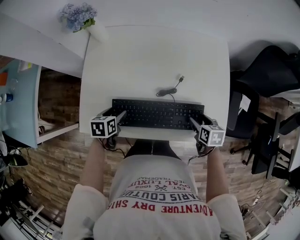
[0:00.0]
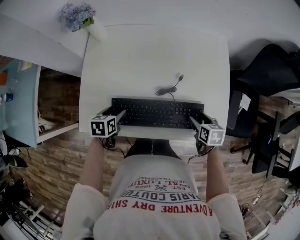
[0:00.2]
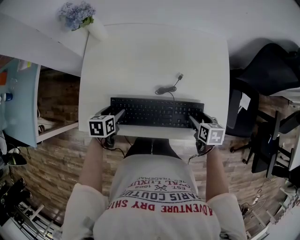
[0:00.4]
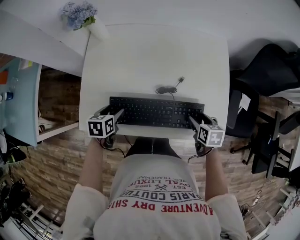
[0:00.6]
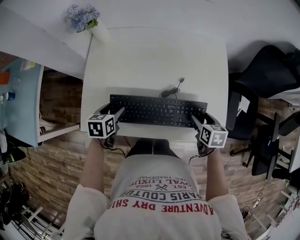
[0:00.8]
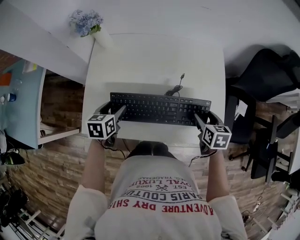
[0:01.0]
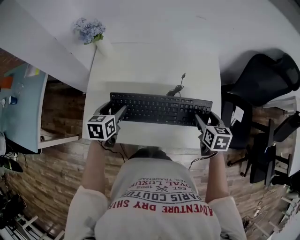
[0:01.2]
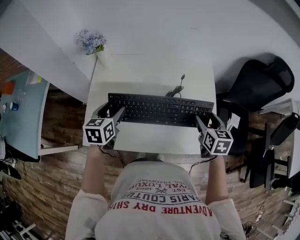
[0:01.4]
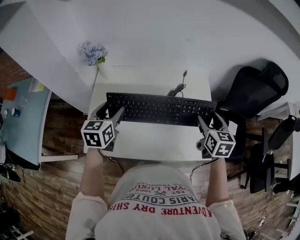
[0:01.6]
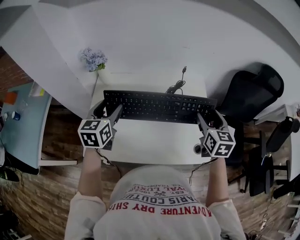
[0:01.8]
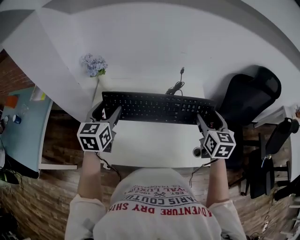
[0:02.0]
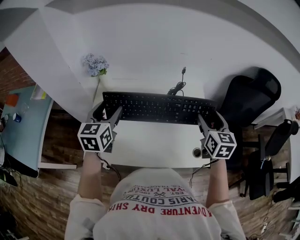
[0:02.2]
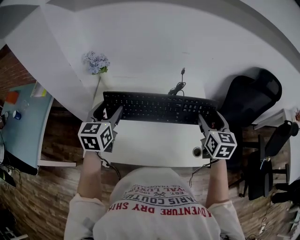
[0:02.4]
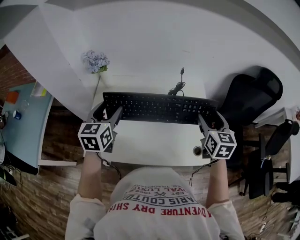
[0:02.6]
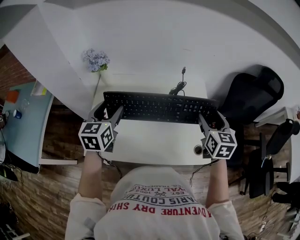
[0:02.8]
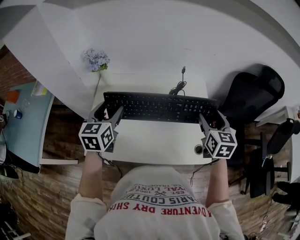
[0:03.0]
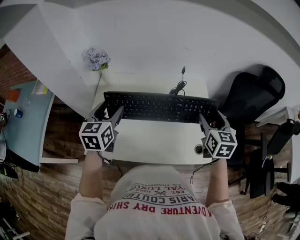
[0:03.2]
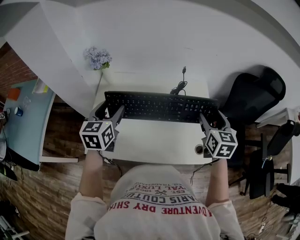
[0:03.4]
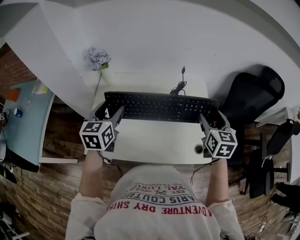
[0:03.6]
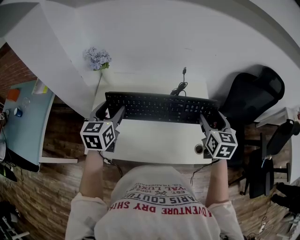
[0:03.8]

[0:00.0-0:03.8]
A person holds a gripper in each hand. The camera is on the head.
0:00.0 to 0:01.2: The grippers both shift upward by some 15 cm.
0:01.2 to 0:02.6: The grippers both shift upward by about 20 cm. The left gripper rotates approximately 30 degrees. Meanwhile the right gripper changes its angle by roughly 20 degrees.
0:02.6 to 0:03.8: Neither gripper changes place.

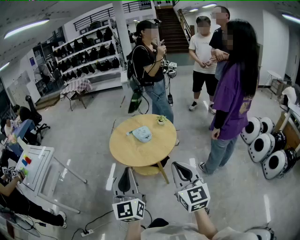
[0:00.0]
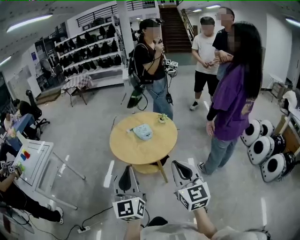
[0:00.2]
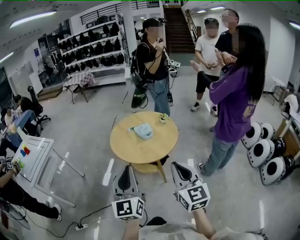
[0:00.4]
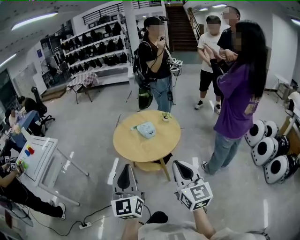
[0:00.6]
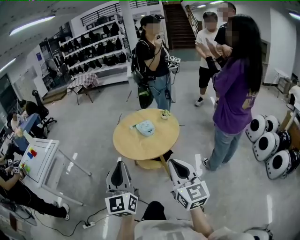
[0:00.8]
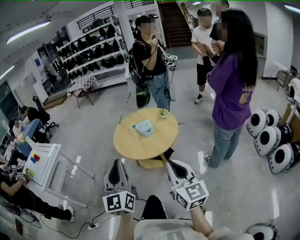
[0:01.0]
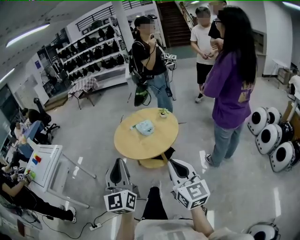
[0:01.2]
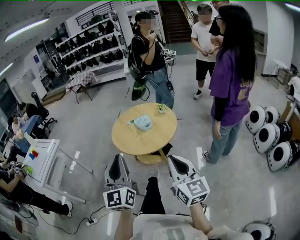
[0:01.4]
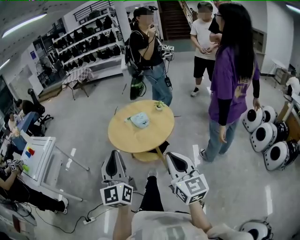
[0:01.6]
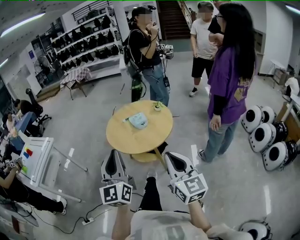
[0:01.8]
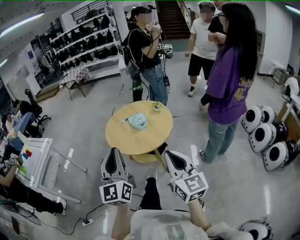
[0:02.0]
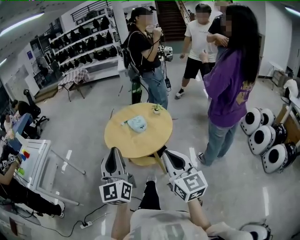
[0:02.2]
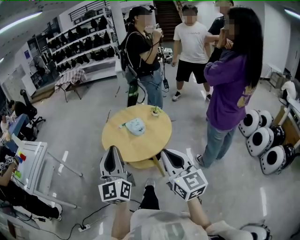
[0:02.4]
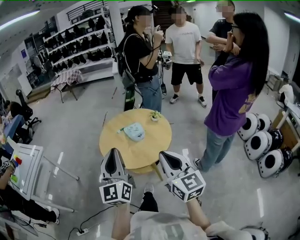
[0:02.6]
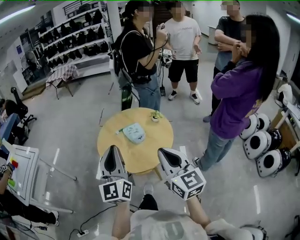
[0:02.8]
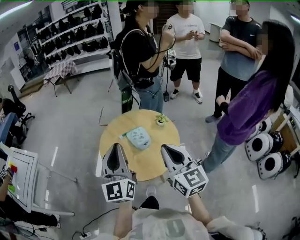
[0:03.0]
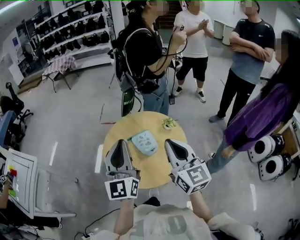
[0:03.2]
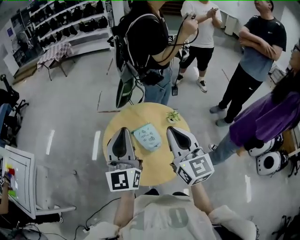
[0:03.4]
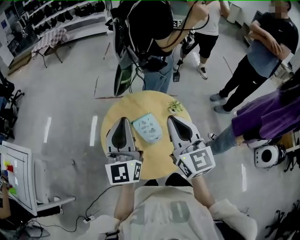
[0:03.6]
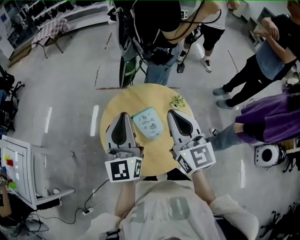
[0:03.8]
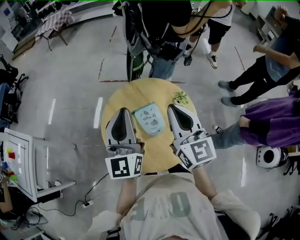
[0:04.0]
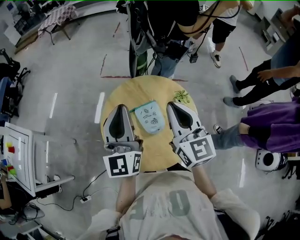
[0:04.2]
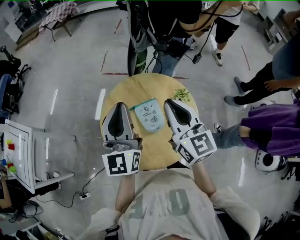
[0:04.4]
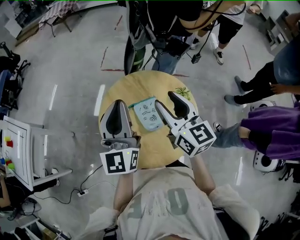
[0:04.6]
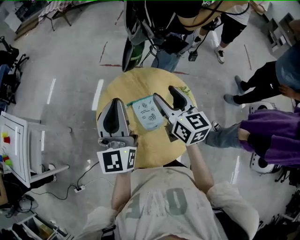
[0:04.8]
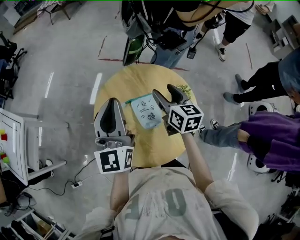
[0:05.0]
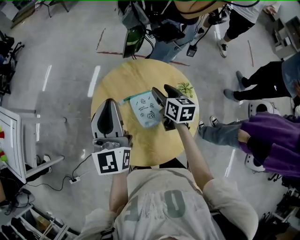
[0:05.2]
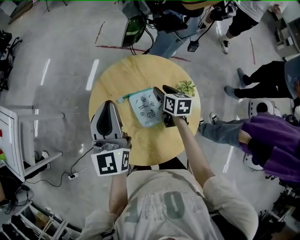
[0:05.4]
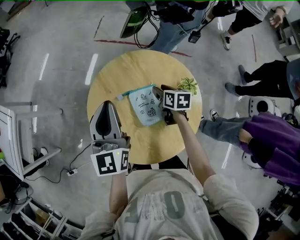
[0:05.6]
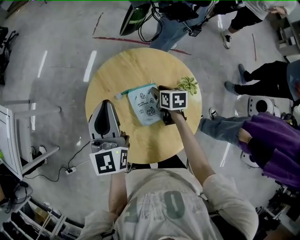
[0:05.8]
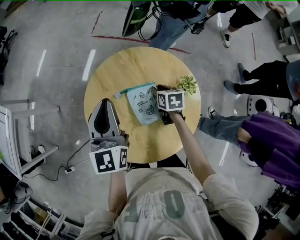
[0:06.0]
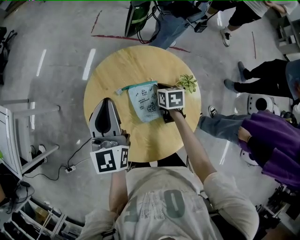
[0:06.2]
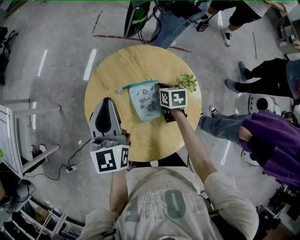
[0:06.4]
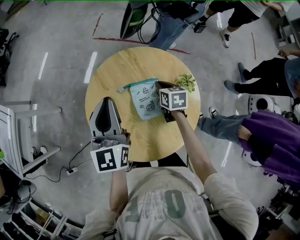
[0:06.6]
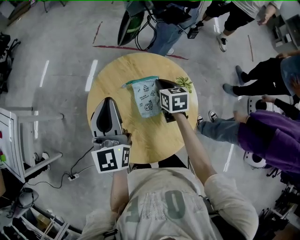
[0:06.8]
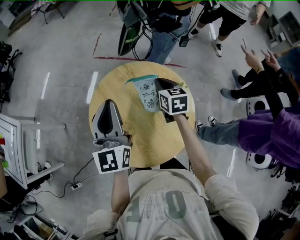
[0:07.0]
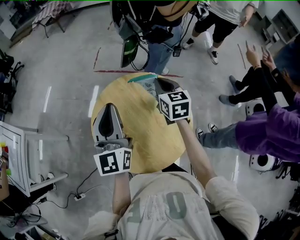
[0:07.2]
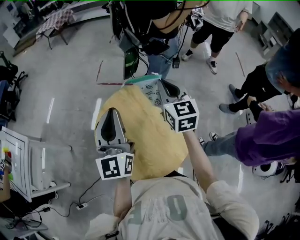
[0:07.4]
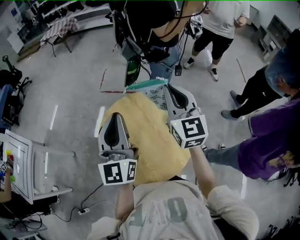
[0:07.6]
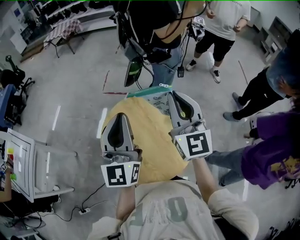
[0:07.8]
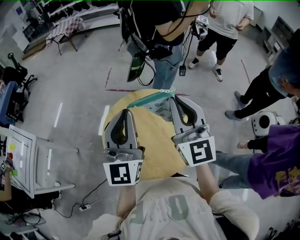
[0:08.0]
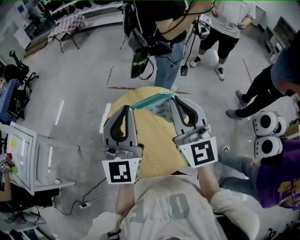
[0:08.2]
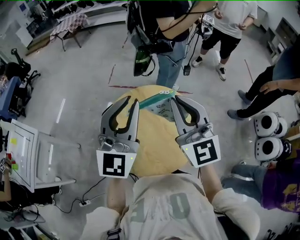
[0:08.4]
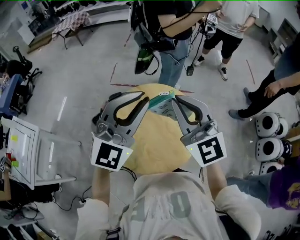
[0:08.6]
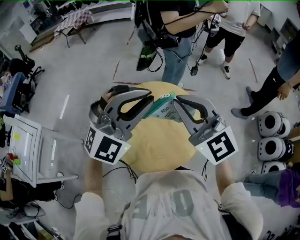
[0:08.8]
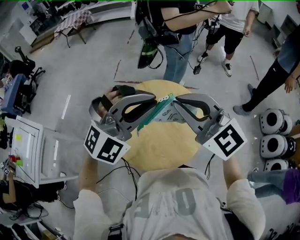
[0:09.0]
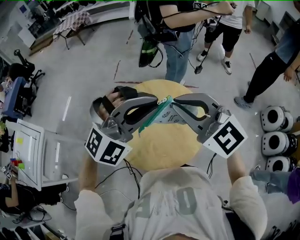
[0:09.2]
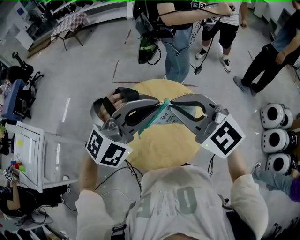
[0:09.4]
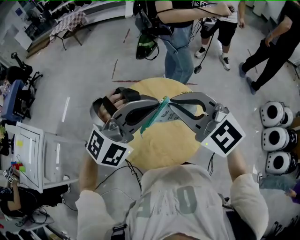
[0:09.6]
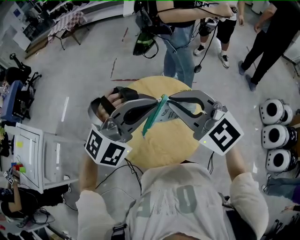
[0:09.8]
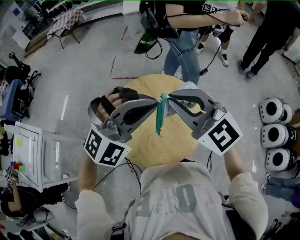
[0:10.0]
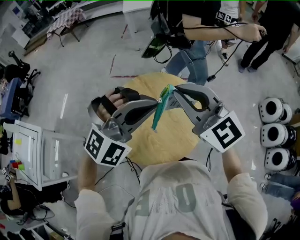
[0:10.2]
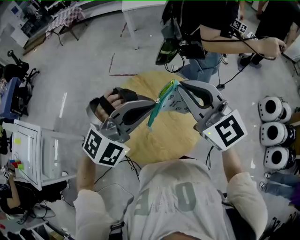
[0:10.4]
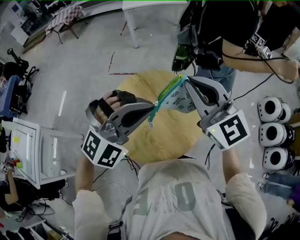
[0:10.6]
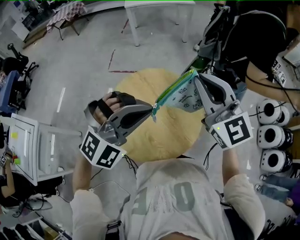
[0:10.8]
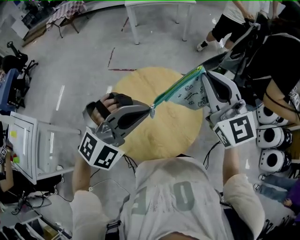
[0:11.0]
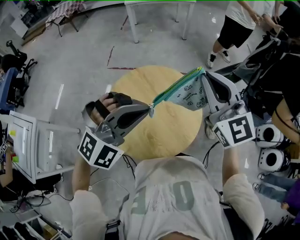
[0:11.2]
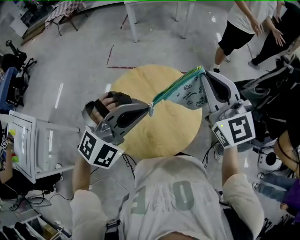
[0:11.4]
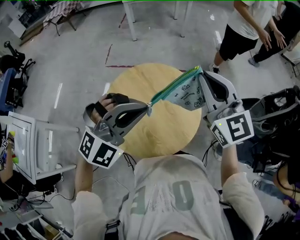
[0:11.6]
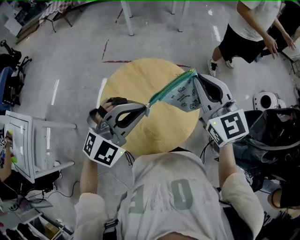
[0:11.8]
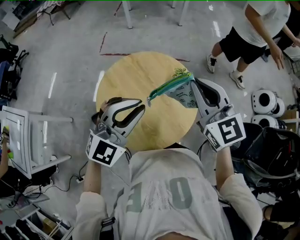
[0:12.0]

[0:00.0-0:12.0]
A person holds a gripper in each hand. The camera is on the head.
0:00.0 to 0:01.6: There are only small adjustments of the grippers.
0:01.6 to 0:03.0: The grippers both shift forward by about 30 cm.
0:03.0 to 0:04.4: The grippers both shift forward by approximately 25 cm.
0:04.4 to 0:06.0: The left gripper travels downward and forward by roughly 15 cm; the right gripper heads downward, covering approximately 35 cm, tilts its fingers some 50 degrees downward, and opens up.
0:06.0 to 0:07.6: The left gripper is displaced upward and backward by roughly 15 cm, and swivels about 20 degrees, while the right gripper is displaced upward by approximately 40 cm, tilts its fingers some 50 degrees upward, and closes its fingers.
0:07.6 to 0:09.0: The left gripper travels to the right and backward by some 10 cm, and swivels approximately 80 degrees. Meanwhile the right gripper travels backward by approximately 15 cm, and turns by roughly 30 degrees.
0:09.0 to 0:10.4: The grippers move only a little.
0:10.4 to 0:12.0: The left gripper moves downward, some 5 cm, and turns by approximately 40 degrees; the right gripper goes approximately 10 cm downward and to the right.

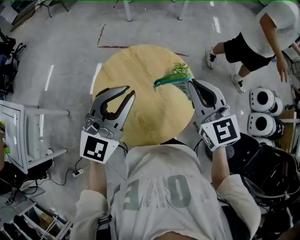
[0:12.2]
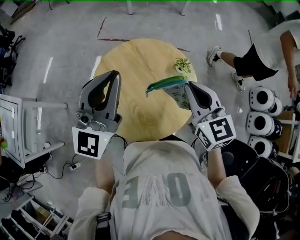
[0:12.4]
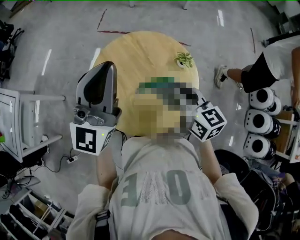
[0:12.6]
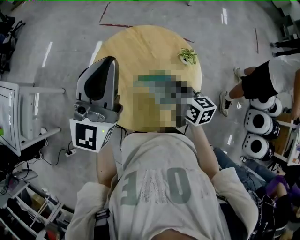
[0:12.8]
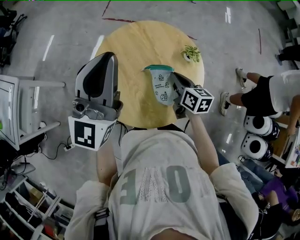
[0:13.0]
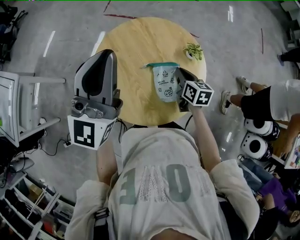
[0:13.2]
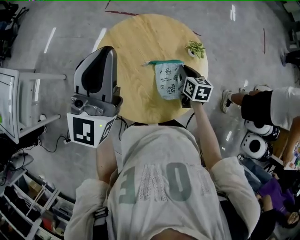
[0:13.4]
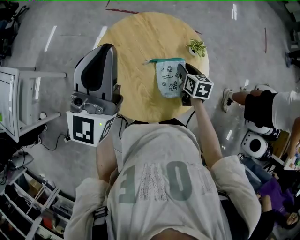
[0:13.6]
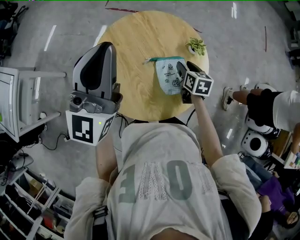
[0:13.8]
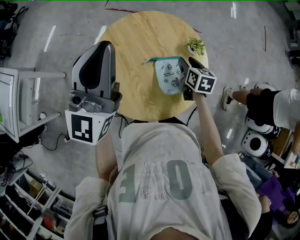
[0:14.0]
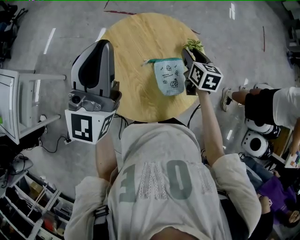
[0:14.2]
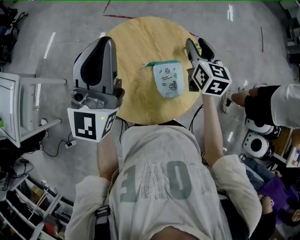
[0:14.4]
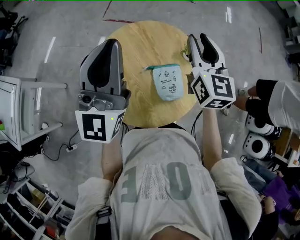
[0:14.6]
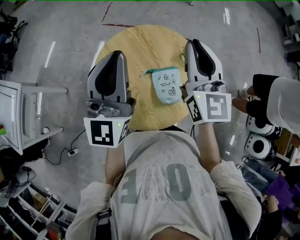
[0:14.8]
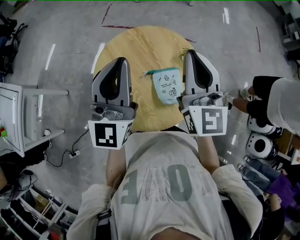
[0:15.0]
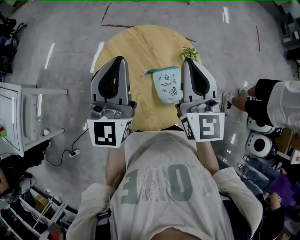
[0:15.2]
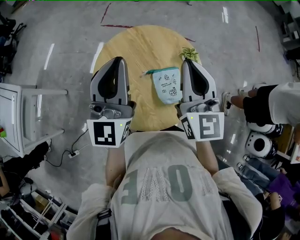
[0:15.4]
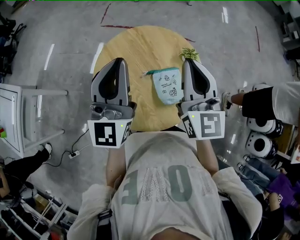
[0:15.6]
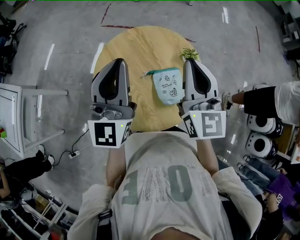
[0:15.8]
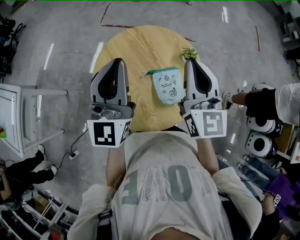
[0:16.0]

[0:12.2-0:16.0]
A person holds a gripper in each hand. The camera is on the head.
0:12.2 to 0:13.4: The left gripper heads to the left, covering approximately 10 cm, and rotates approximately 30 degrees; the right gripper shifts roughly 30 cm downward, and swivels roughly 40 degrees.
0:13.4 to 0:14.8: The right gripper is displaced upward by approximately 30 cm, tips its fingers upward by roughly 40 degrees, and opens and closes again.
0:14.8 to 0:16.0: The grippers make only small movements.

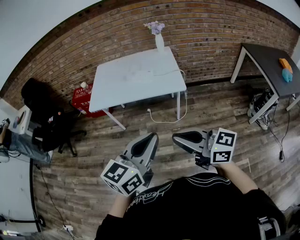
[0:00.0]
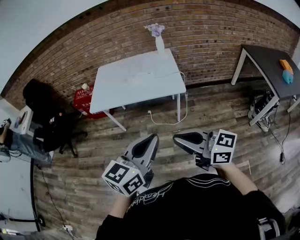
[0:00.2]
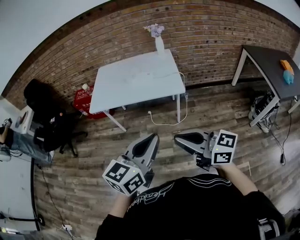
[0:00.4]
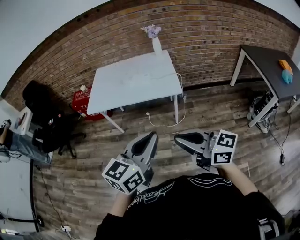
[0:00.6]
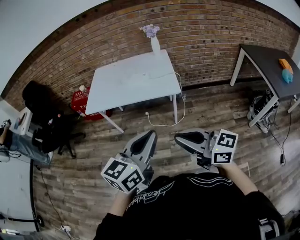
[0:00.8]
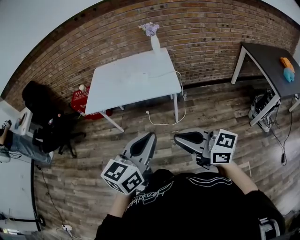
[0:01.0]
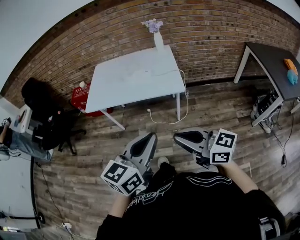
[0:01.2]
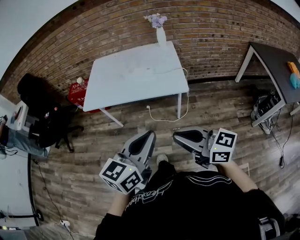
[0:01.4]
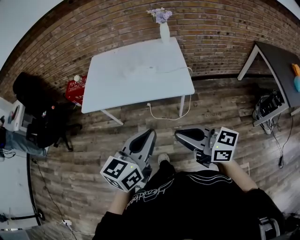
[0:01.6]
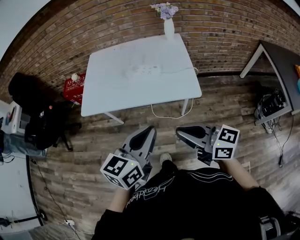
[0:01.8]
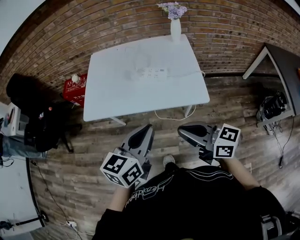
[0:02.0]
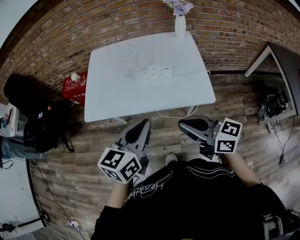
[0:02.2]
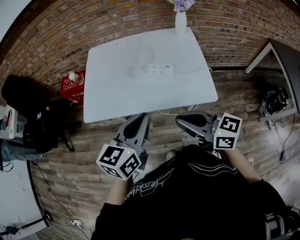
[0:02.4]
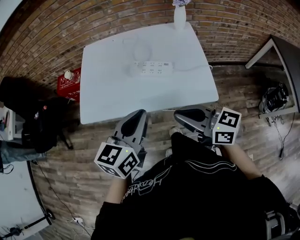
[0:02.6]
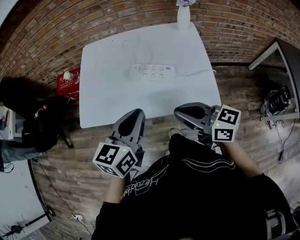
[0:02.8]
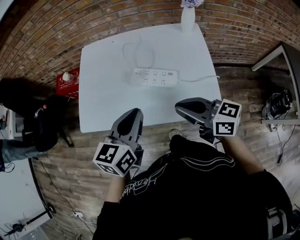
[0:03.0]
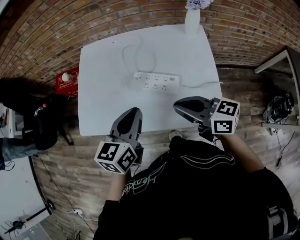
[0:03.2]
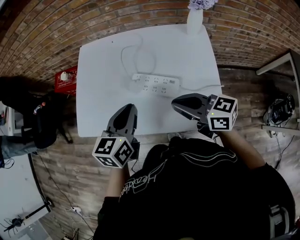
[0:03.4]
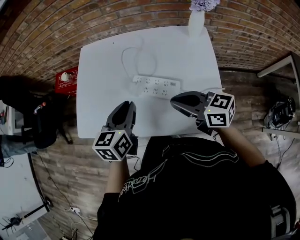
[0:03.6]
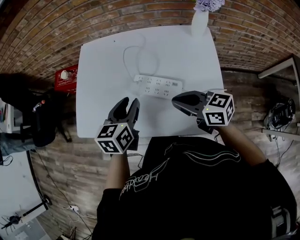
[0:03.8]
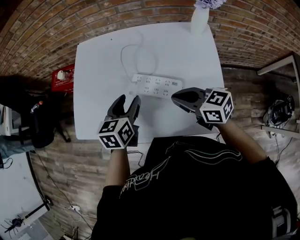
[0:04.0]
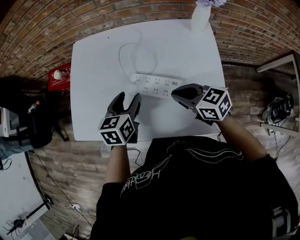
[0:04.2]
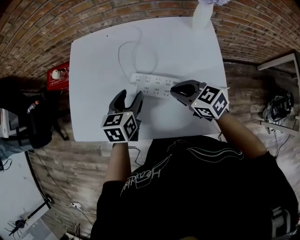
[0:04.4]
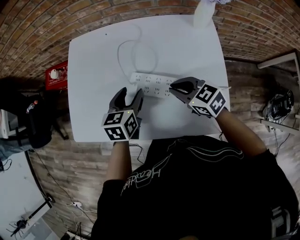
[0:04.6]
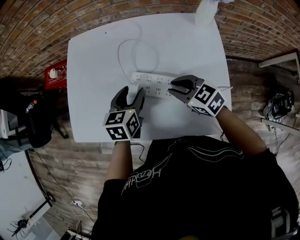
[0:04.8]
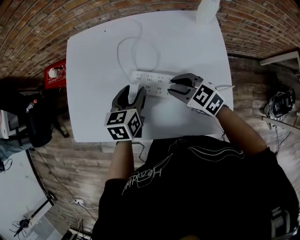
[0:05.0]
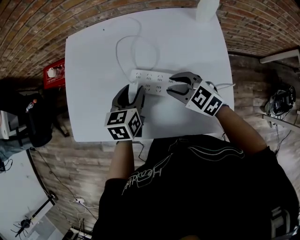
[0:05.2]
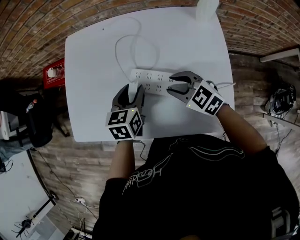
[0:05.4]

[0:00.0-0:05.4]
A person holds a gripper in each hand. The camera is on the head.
0:00.0 to 0:01.4: The left gripper goes about 10 cm forward, while the right gripper is displaced forward and downward by about 10 cm.
0:01.4 to 0:02.8: Both grippers move forward, some 40 cm.
0:02.8 to 0:04.0: Both grippers travel together forward and downward, approximately 20 cm. The left gripper opens.
0:04.0 to 0:05.4: The right gripper heads downward and forward, covering approximately 10 cm, changes its angle by some 30 degrees, and opens. The left gripper travels downward by roughly 5 cm.
